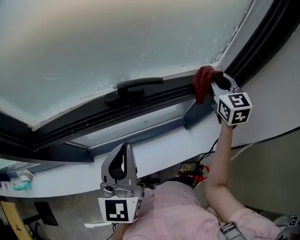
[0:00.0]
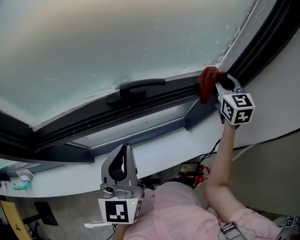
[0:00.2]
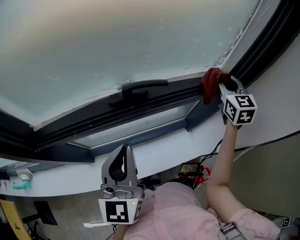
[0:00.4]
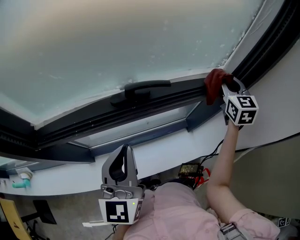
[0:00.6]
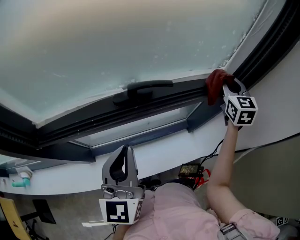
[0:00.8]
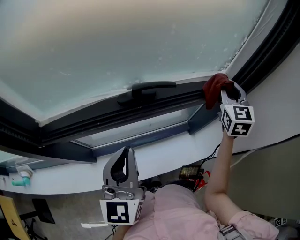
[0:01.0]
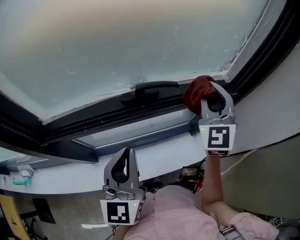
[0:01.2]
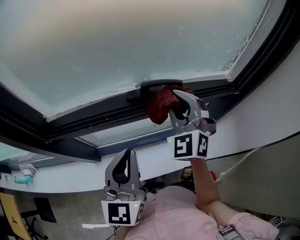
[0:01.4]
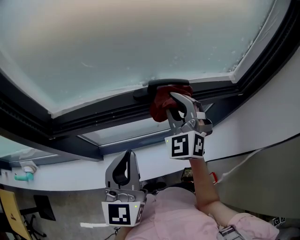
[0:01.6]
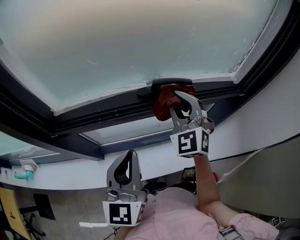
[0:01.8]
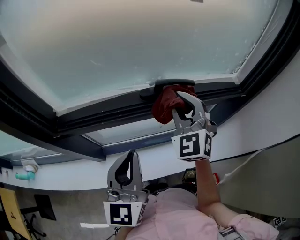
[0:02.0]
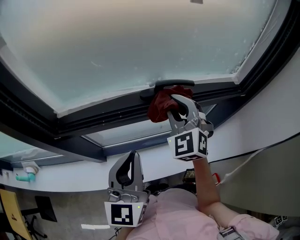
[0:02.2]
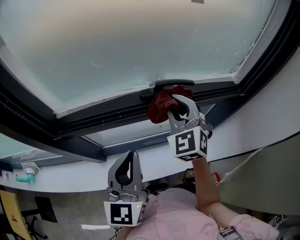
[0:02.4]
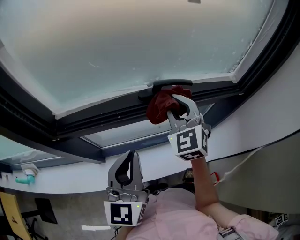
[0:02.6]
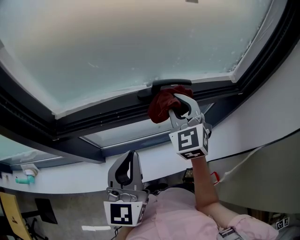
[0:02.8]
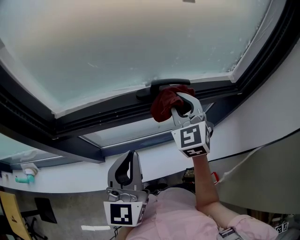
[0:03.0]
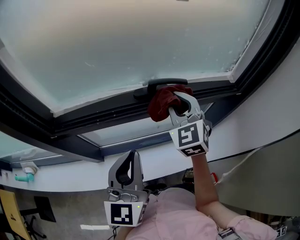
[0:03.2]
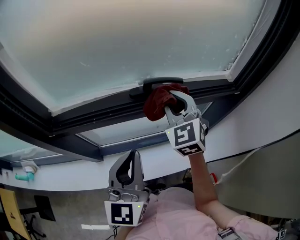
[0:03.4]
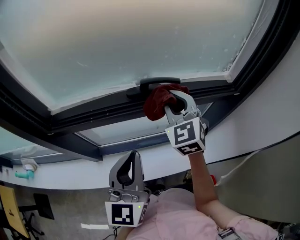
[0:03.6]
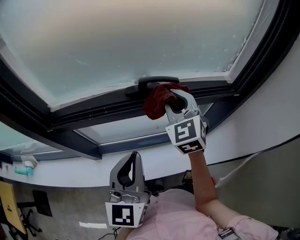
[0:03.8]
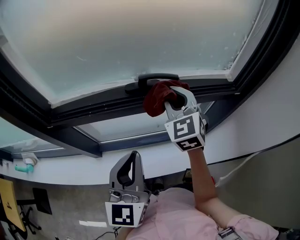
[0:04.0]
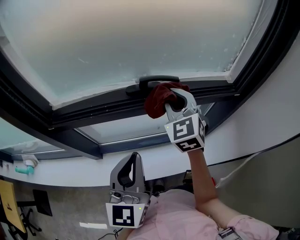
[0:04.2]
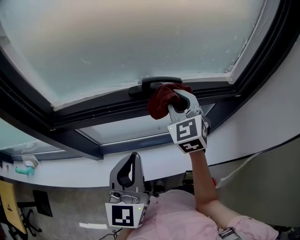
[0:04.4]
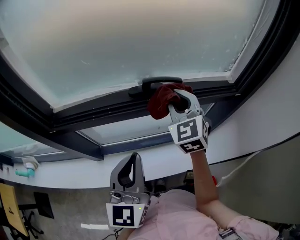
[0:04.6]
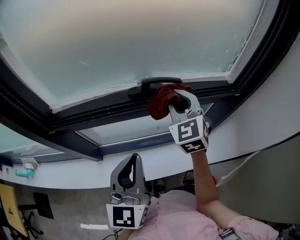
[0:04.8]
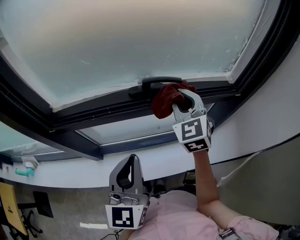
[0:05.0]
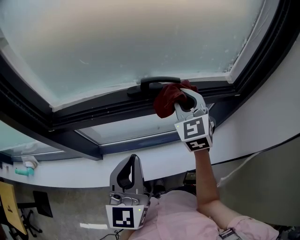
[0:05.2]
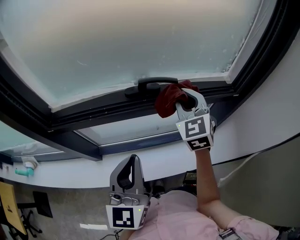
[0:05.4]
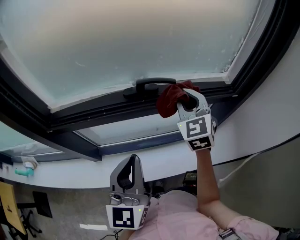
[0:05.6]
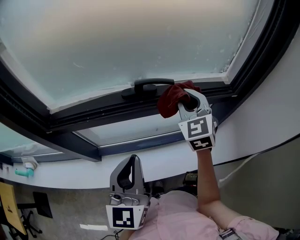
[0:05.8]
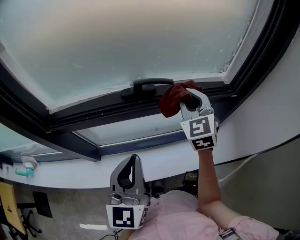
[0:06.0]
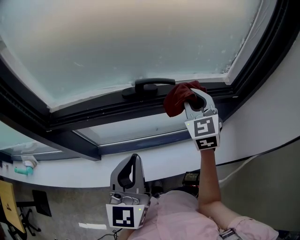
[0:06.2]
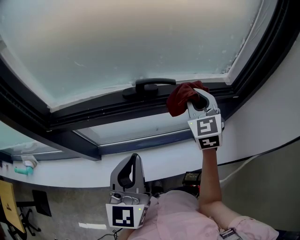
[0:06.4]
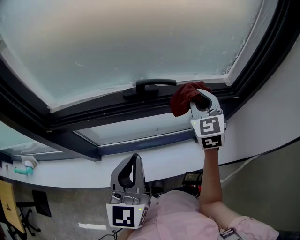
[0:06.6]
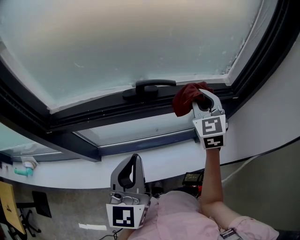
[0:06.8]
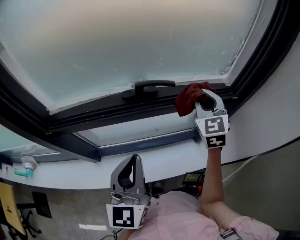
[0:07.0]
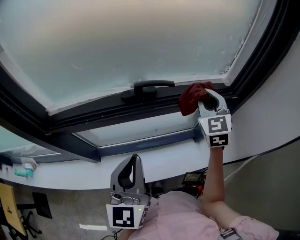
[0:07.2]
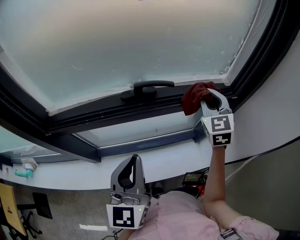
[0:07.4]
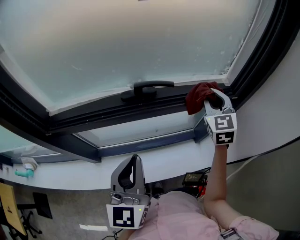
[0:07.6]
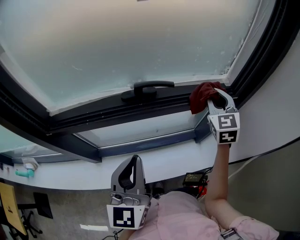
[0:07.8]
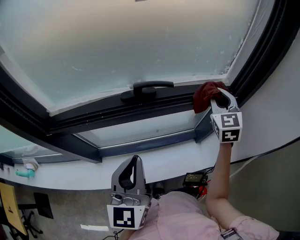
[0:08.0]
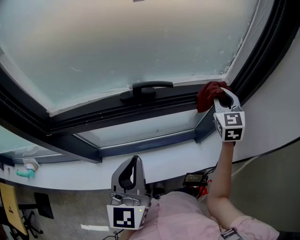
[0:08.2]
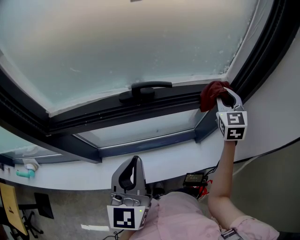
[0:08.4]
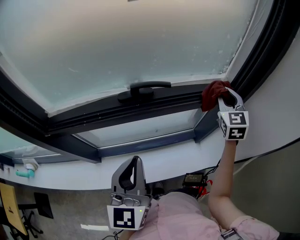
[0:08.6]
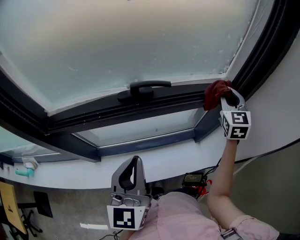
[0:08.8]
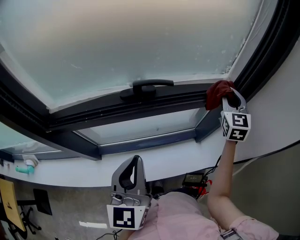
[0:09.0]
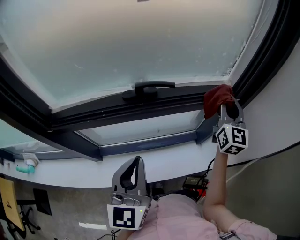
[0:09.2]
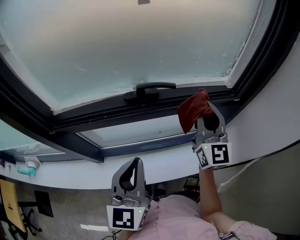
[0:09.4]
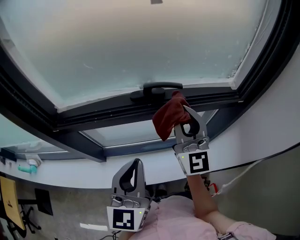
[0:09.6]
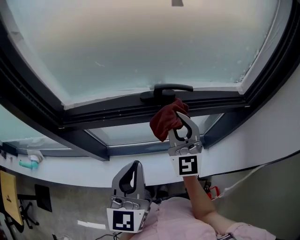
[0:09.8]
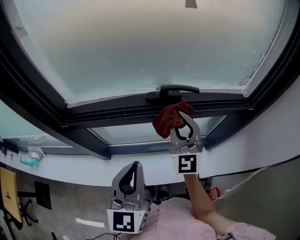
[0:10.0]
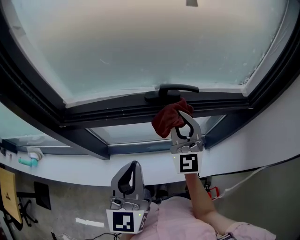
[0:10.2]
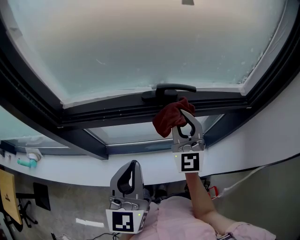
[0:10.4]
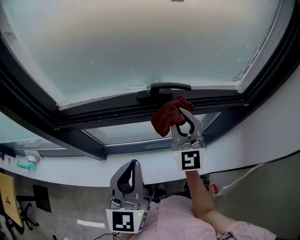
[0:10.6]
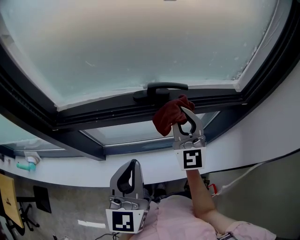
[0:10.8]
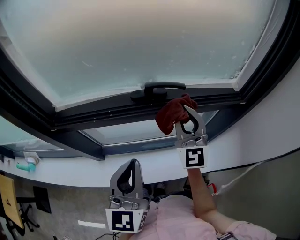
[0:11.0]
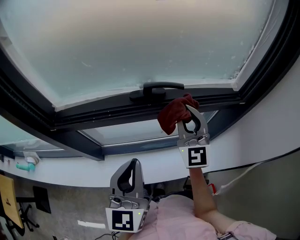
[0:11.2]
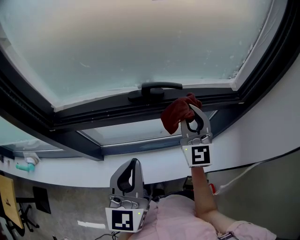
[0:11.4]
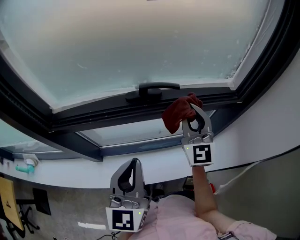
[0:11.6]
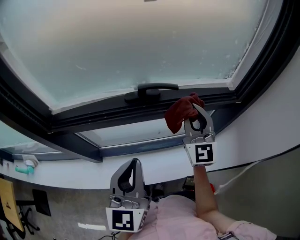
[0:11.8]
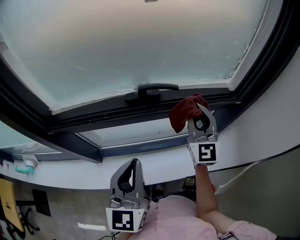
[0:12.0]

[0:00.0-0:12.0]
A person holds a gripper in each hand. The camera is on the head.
0:00.0 to 0:01.6: The right gripper is displaced to the left by roughly 25 cm, and rotates approximately 40 degrees; the left gripper travels to the left by approximately 5 cm.
0:01.6 to 0:03.0: The grippers move only a little.
0:03.0 to 0:04.4: The left gripper moves approximately 5 cm.
0:04.4 to 0:06.0: The right gripper moves to the right, approximately 5 cm.
0:06.0 to 0:07.6: The right gripper moves to the right, approximately 10 cm.
0:07.6 to 0:09.0: The right gripper heads to the right, covering about 10 cm.
0:09.0 to 0:10.4: The right gripper shifts some 30 cm to the left, and turns by about 30 degrees; the left gripper moves to the left, roughly 5 cm.
0:10.4 to 0:12.0: The right gripper shifts some 10 cm to the right.

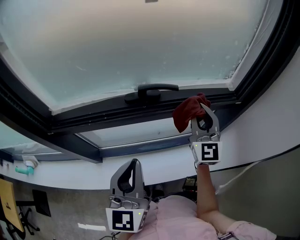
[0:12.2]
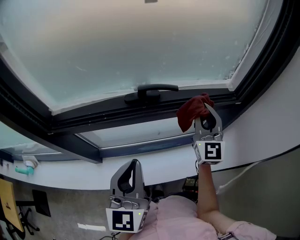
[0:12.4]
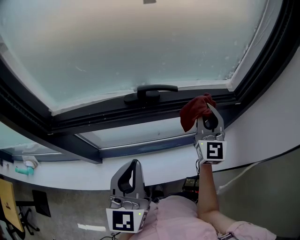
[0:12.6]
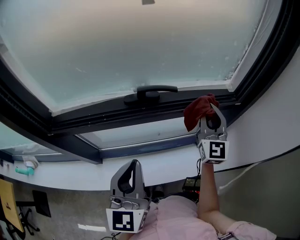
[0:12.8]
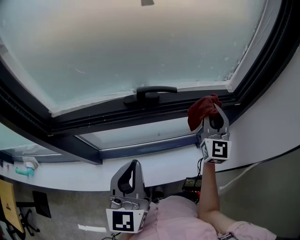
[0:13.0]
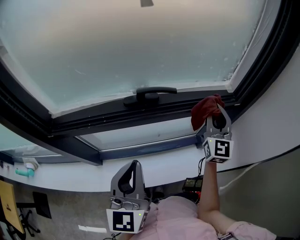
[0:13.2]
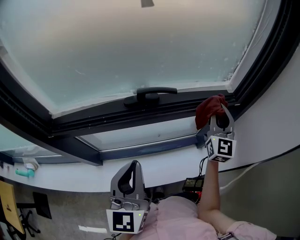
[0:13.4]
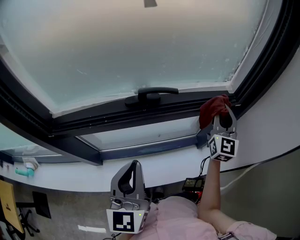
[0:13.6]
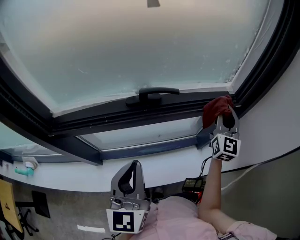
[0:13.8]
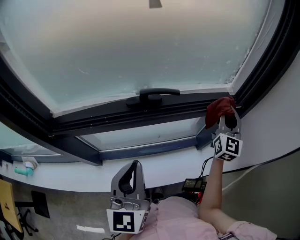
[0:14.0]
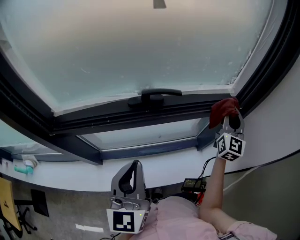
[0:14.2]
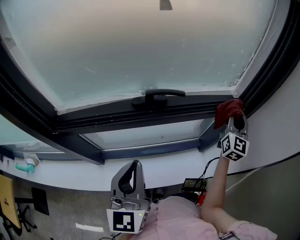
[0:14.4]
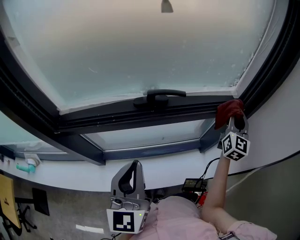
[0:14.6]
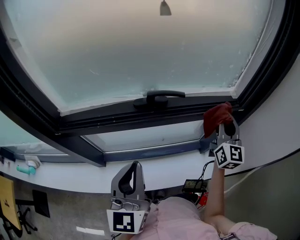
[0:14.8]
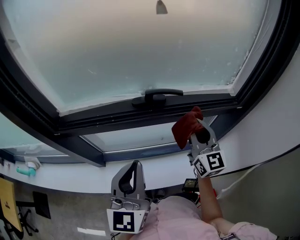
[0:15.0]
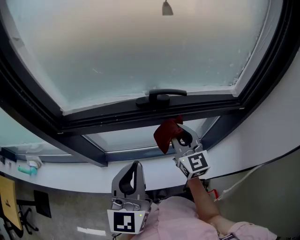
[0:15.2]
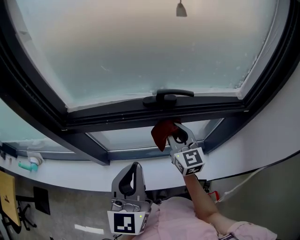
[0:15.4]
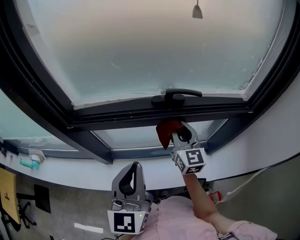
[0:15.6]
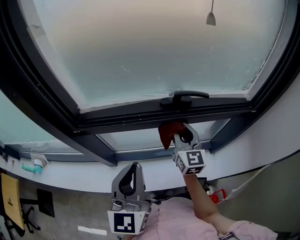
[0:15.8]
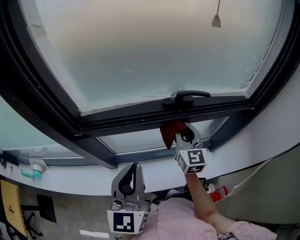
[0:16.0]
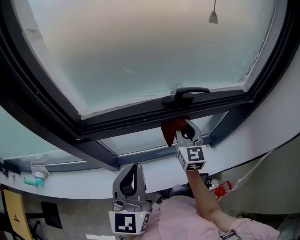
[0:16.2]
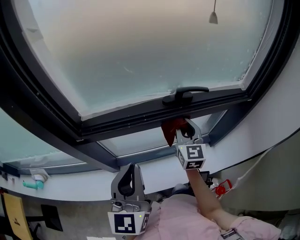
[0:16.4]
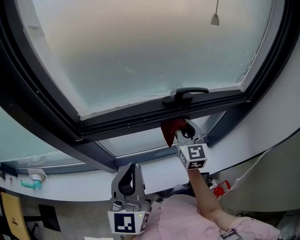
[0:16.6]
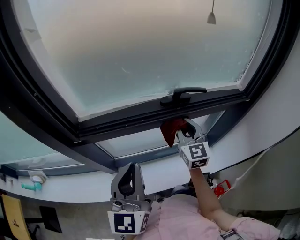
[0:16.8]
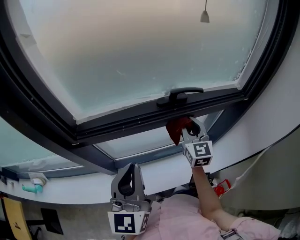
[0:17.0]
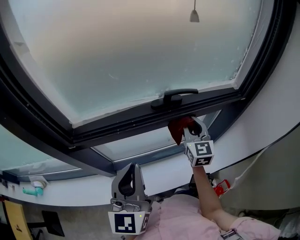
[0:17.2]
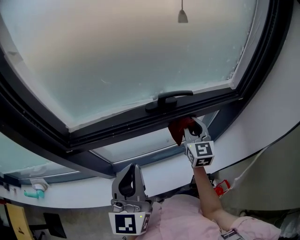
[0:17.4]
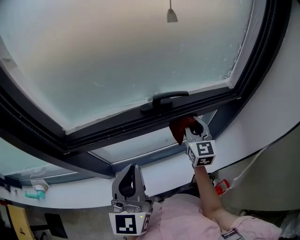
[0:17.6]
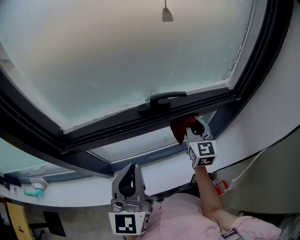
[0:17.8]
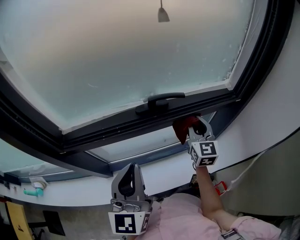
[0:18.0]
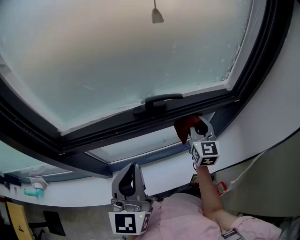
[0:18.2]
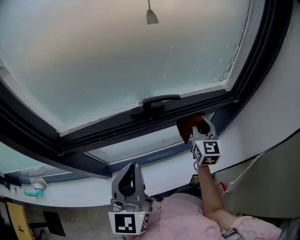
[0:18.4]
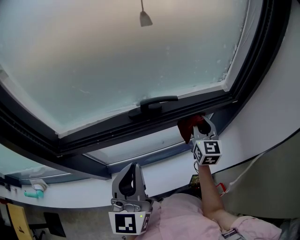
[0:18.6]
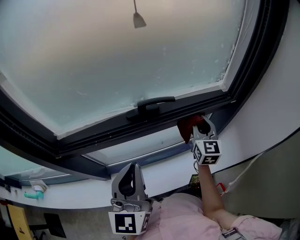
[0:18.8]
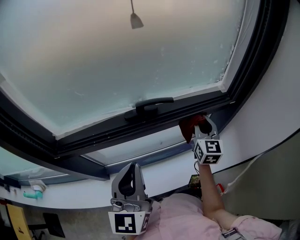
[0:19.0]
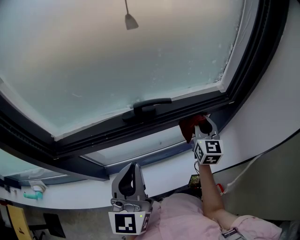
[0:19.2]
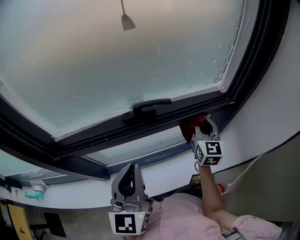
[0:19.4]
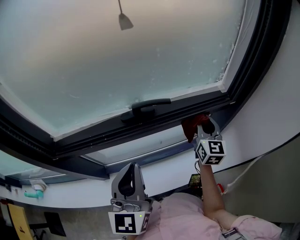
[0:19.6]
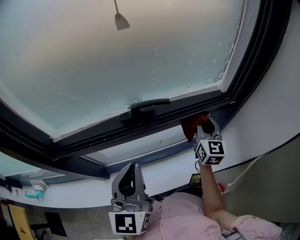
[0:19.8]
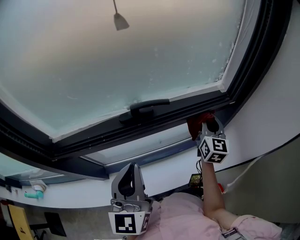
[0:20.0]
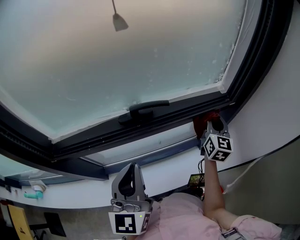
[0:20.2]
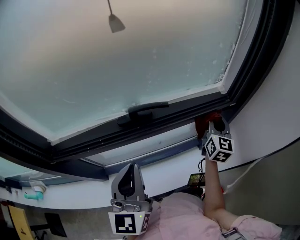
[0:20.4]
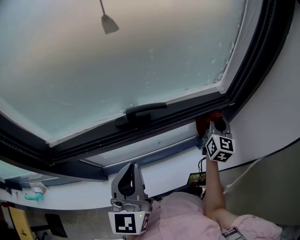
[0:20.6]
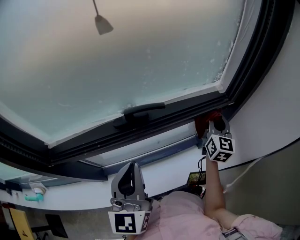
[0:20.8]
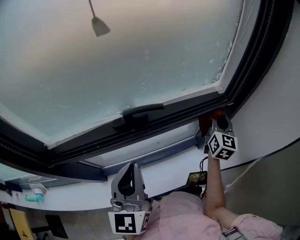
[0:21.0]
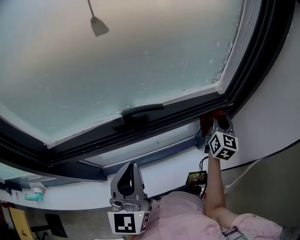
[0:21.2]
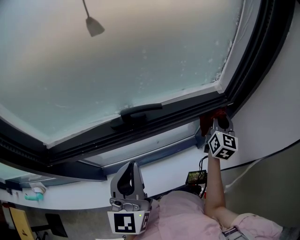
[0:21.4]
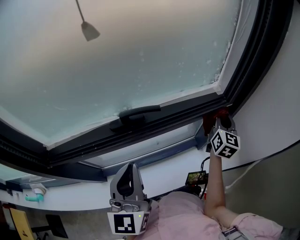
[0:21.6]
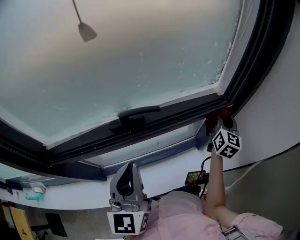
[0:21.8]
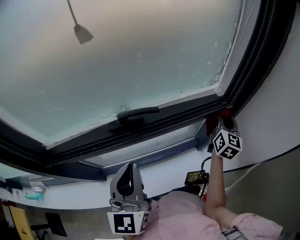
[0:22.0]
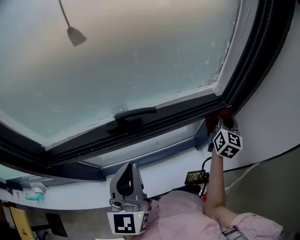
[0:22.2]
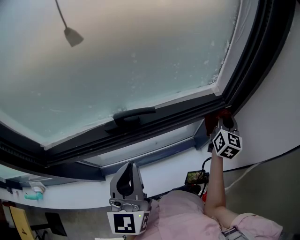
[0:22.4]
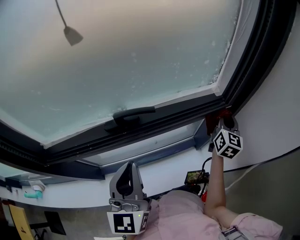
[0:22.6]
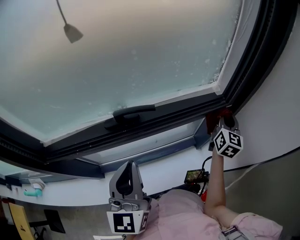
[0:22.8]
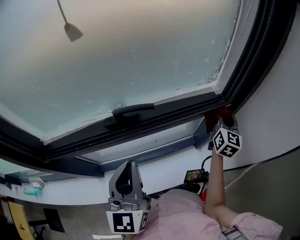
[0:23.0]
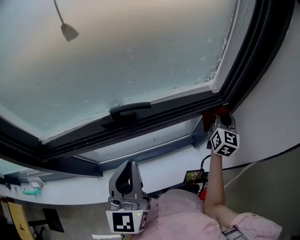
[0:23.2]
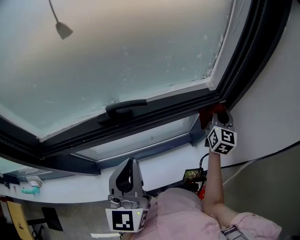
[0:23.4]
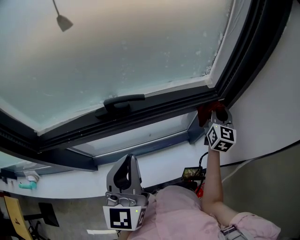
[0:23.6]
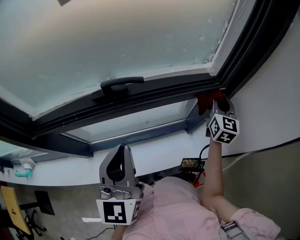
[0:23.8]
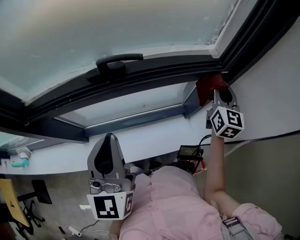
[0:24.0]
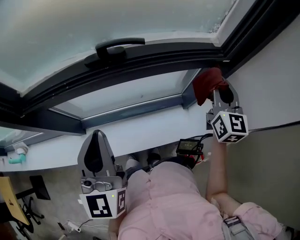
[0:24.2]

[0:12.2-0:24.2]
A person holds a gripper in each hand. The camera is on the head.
0:12.2 to 0:13.8: The right gripper travels to the right by some 10 cm.
0:13.8 to 0:15.2: The right gripper goes about 20 cm to the left, and turns by approximately 40 degrees.
0:15.2 to 0:16.6: The right gripper shifts about 5 cm to the left; the left gripper heads to the left, covering some 10 cm.
0:16.6 to 0:18.2: The left gripper goes about 10 cm to the right. Meanwhile the right gripper travels to the right by roughly 15 cm.
0:18.2 to 0:19.8: The left gripper changes place by approximately 5 cm, while the right gripper is displaced to the right by roughly 5 cm.
0:19.8 to 0:21.2: The right gripper shifts approximately 10 cm to the right.
0:21.2 to 0:22.6: The right gripper shifts by some 5 cm.
0:22.6 to 0:24.2: The right gripper heads backward and to the left, covering roughly 10 cm, and changes its angle by approximately 20 degrees. Meanwhile the left gripper goes roughly 10 cm backward.
